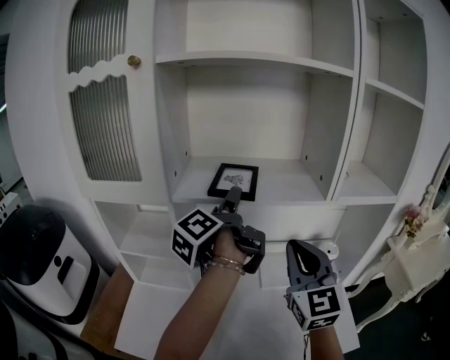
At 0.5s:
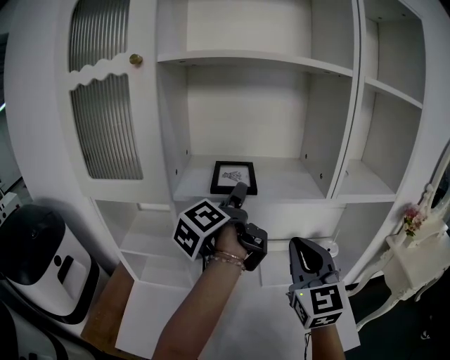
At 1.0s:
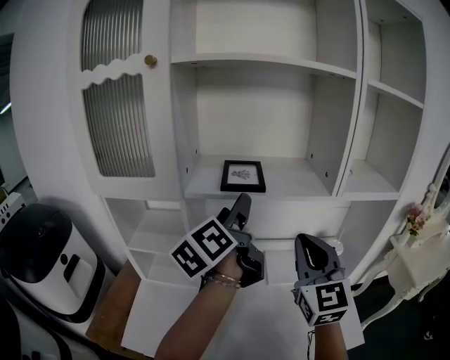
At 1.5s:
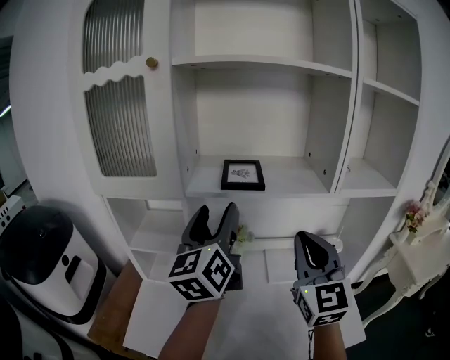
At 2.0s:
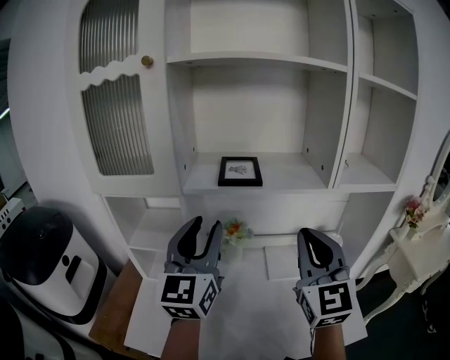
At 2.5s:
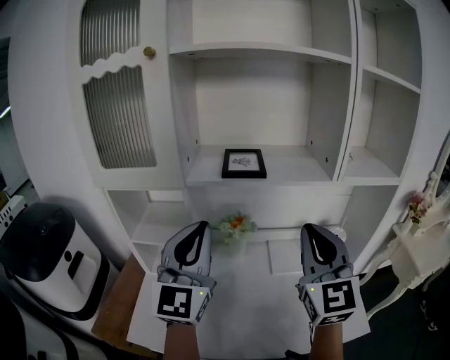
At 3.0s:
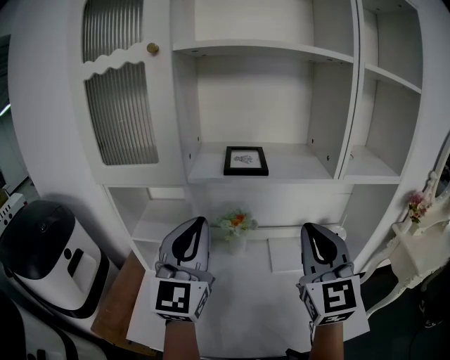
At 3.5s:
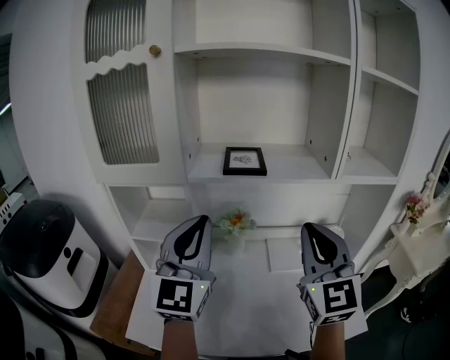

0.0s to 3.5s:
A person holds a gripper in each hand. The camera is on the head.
0.0s to 2.0s: The right gripper ends up roughly 5 cm from where it was; the left gripper shifts about 15 cm backward and to the left, and rolls clockwise, seen from behind, by approximately 80 degrees.
2.0s to 3.5s: The left gripper closes its fingers.

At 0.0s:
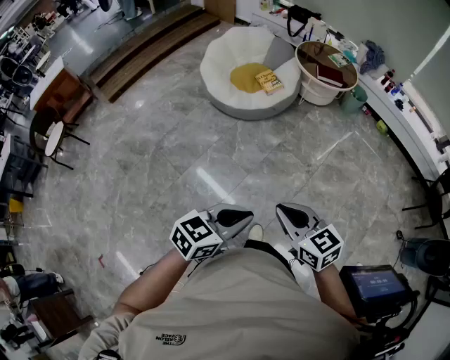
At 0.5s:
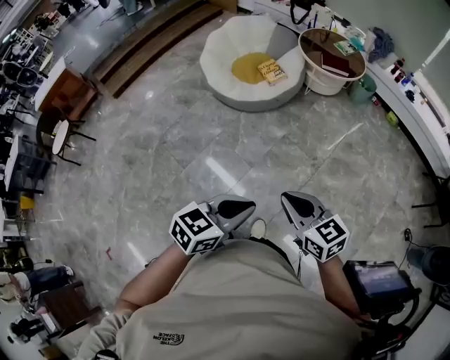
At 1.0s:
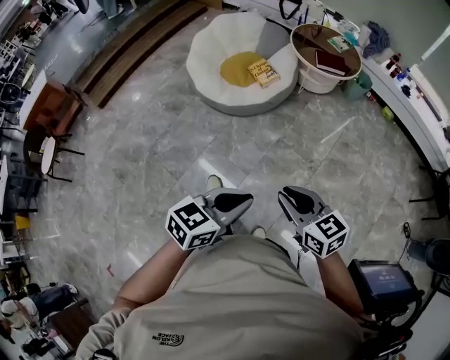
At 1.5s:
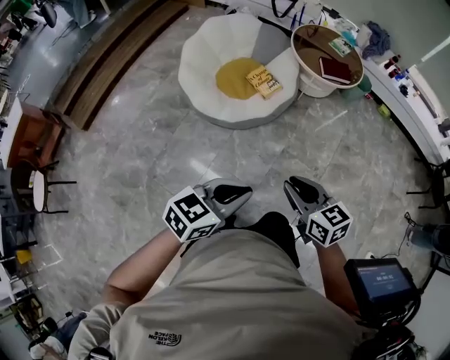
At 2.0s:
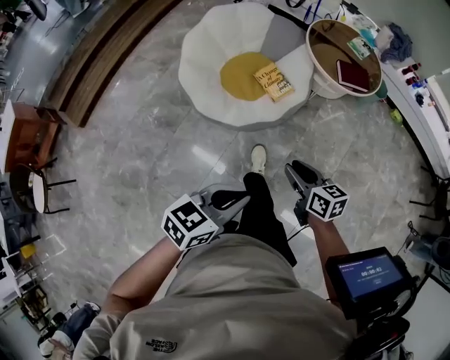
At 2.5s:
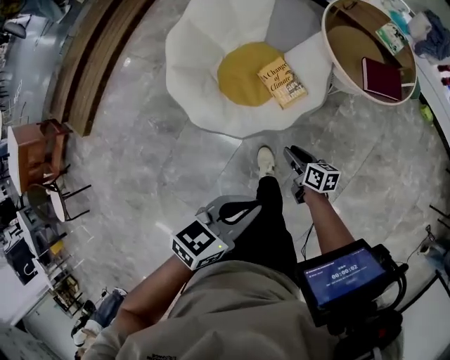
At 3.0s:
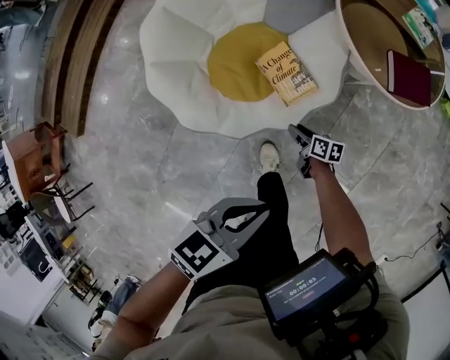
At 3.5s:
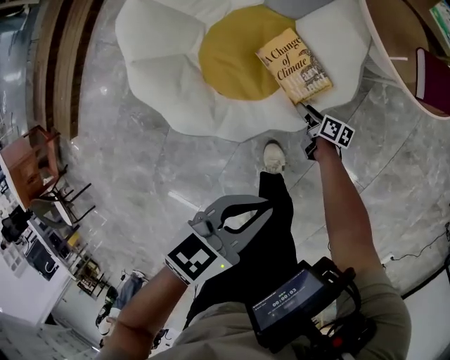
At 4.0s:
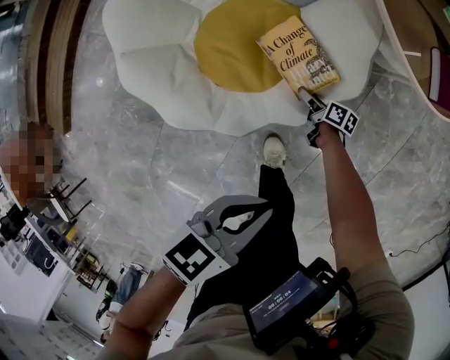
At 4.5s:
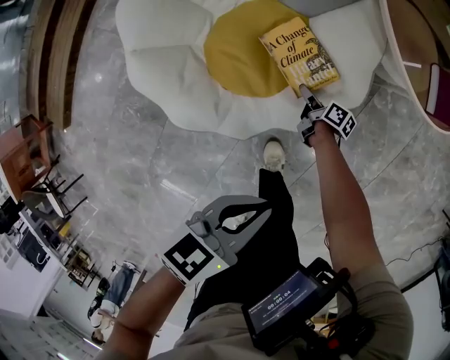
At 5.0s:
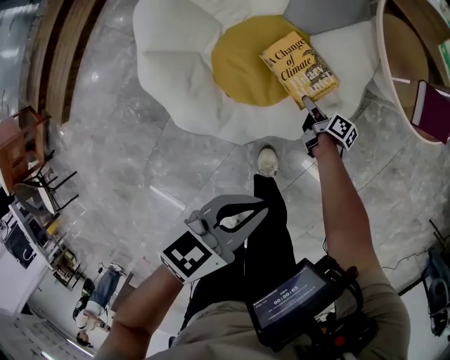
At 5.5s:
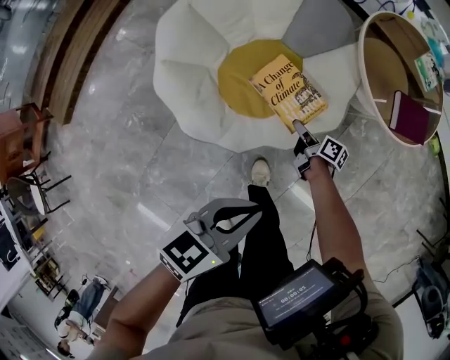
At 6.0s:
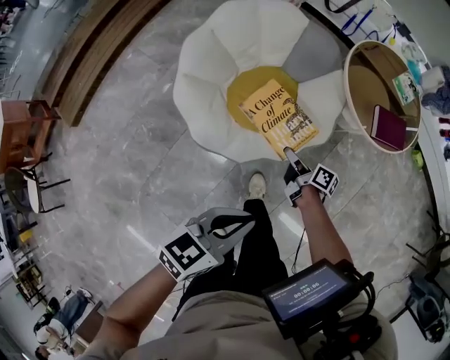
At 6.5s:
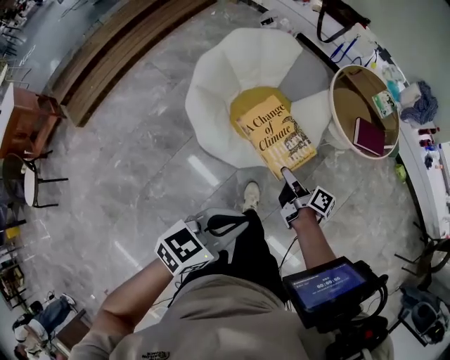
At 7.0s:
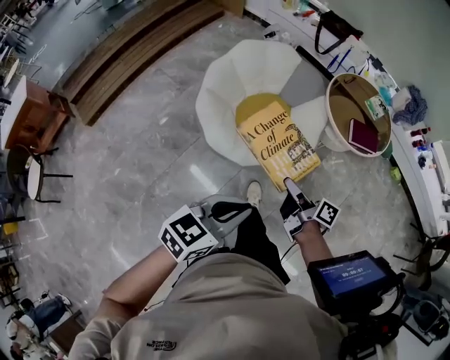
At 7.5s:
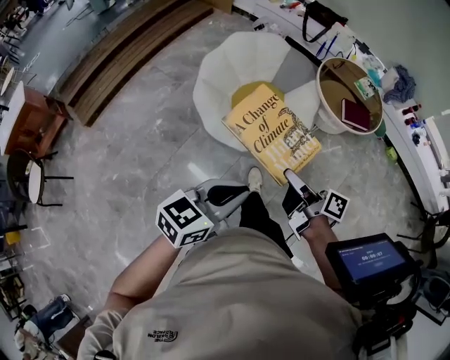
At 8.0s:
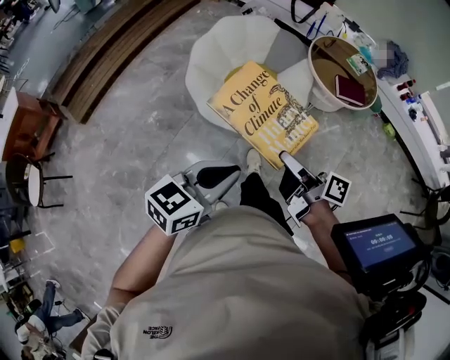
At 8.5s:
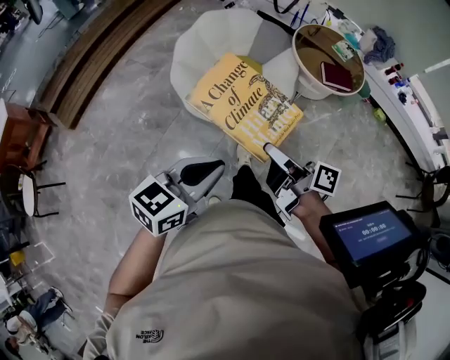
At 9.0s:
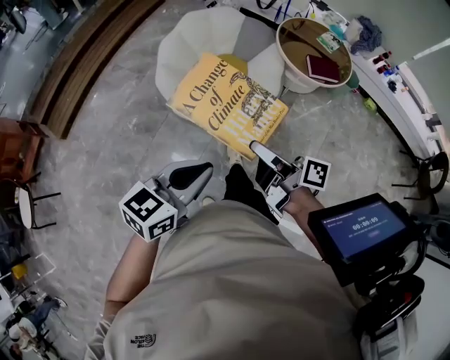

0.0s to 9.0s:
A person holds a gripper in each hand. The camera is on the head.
0.0s to 2.0s: The pair of grippers is taken forward, roughly 60 cm. The right gripper changes its angle by roughly 30 degrees, and opens.
2.0s to 4.5s: The left gripper goes some 50 cm forward and downward. The right gripper shifts some 70 cm downward and forward, rotates around the line of its fingers by some 50 degrees, clockwise from behind, and opens and closes again.
4.5s to 7.0s: The right gripper goes some 70 cm upward and backward, and changes its angle by some 20 degrees, while the left gripper moves upward and backward, some 40 cm, and swivels roughly 30 degrees.
7.0s to 9.0s: The right gripper travels backward and upward by approximately 20 cm, while the left gripper moves backward, about 10 cm.

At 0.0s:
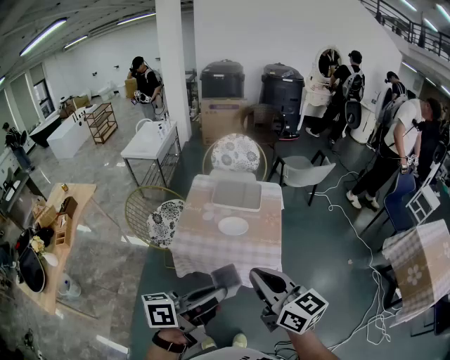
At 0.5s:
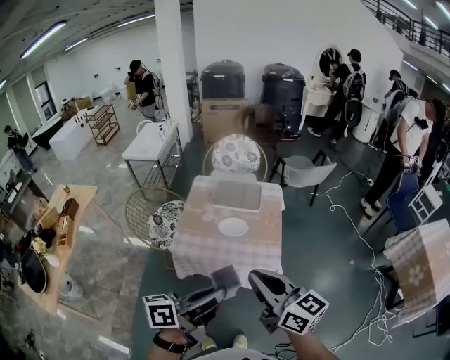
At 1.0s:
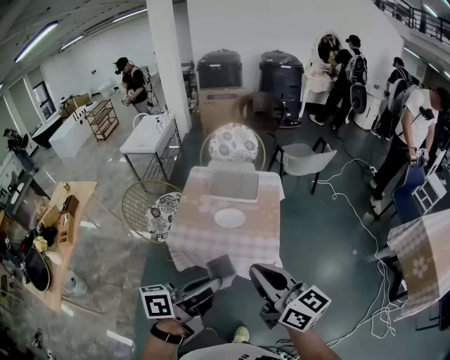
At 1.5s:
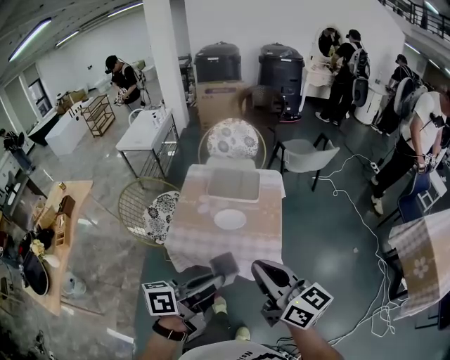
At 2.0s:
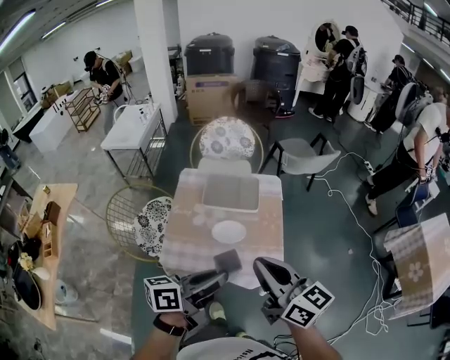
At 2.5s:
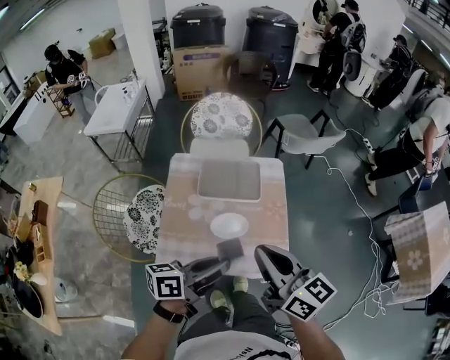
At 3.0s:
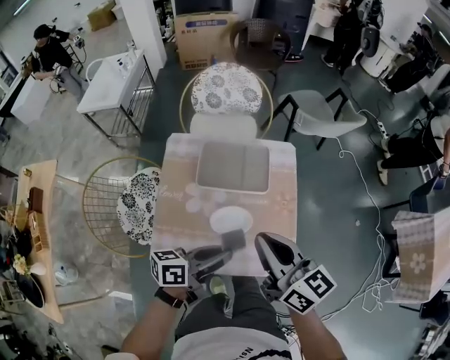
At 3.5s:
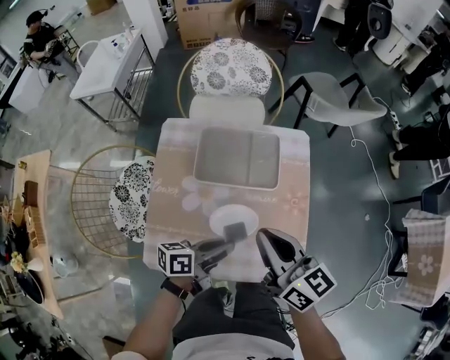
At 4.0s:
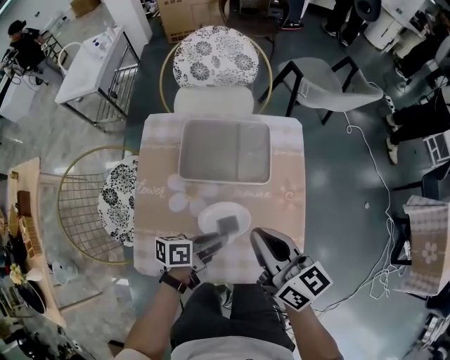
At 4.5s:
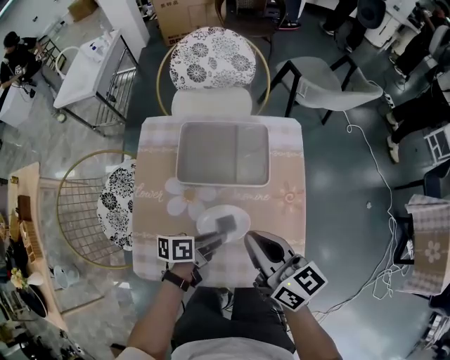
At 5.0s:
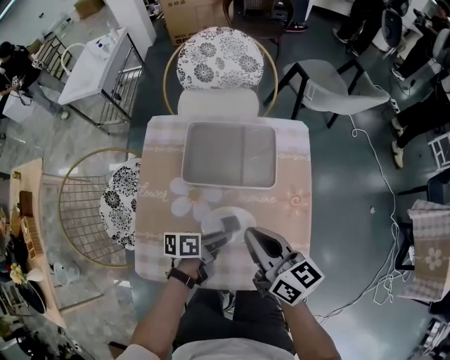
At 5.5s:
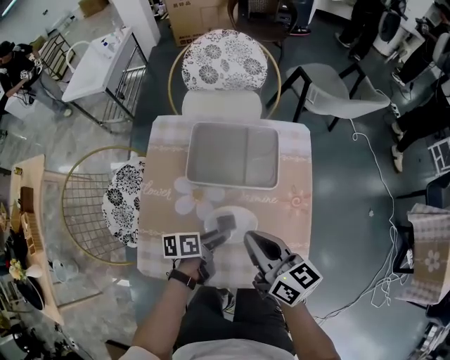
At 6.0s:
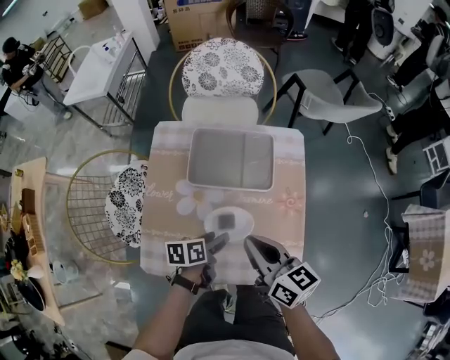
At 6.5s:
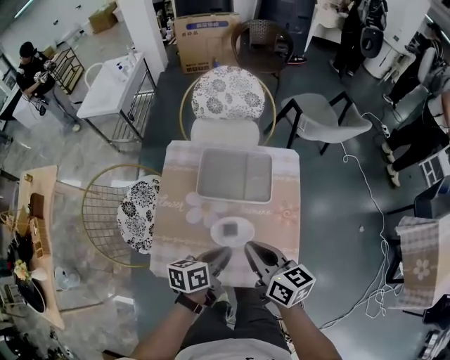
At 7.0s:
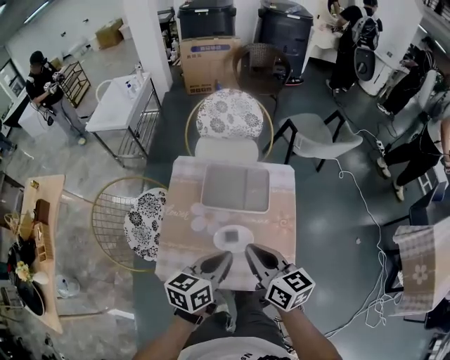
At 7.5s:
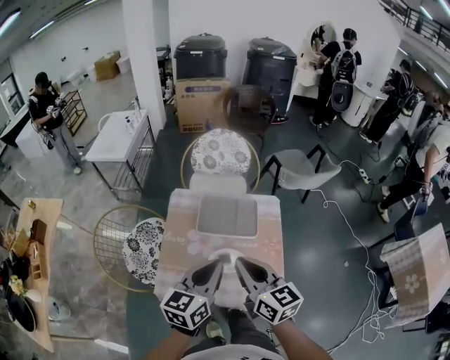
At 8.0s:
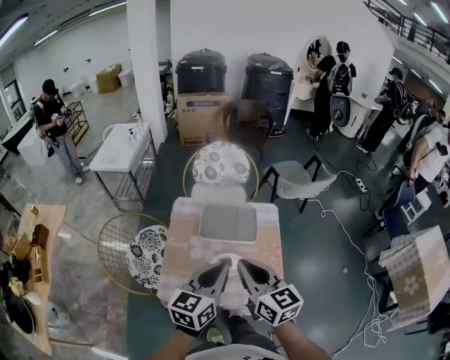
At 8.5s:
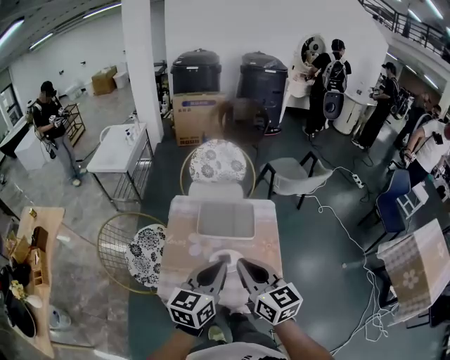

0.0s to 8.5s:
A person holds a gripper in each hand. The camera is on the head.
0.0s to 2.0s: Both grippers move forward, approximately 15 cm.
2.0s to 4.0s: The two grippers go about 35 cm downward and forward. The left gripper swivels some 30 degrees.
4.0s to 6.5s: The left gripper heads upward, covering about 10 cm, and opens, then closes again.
6.5s to 8.5s: The right gripper heads upward and backward, covering about 20 cm, and turns by some 30 degrees; the left gripper is displaced upward by approximately 25 cm, and changes its angle by approximately 40 degrees.

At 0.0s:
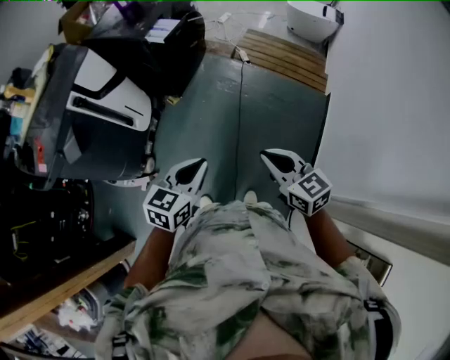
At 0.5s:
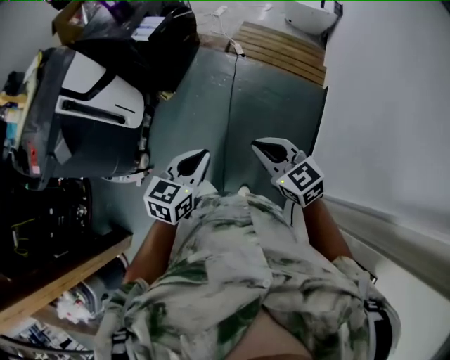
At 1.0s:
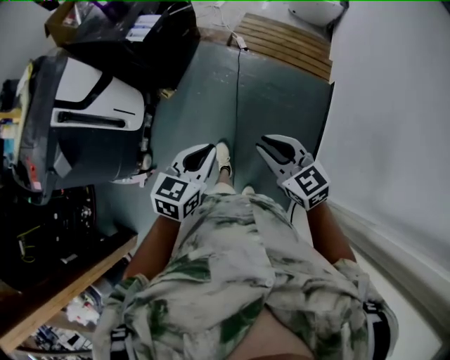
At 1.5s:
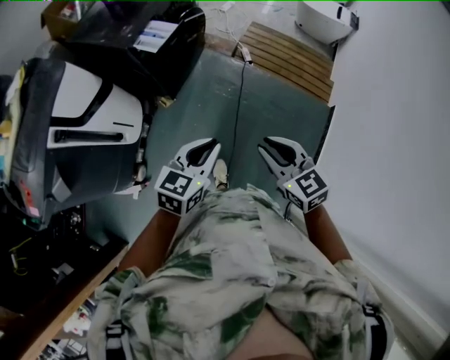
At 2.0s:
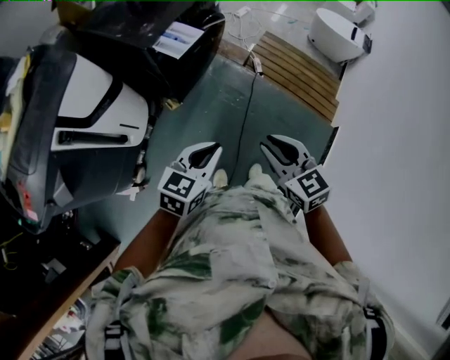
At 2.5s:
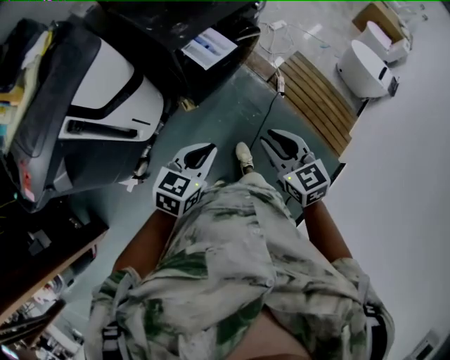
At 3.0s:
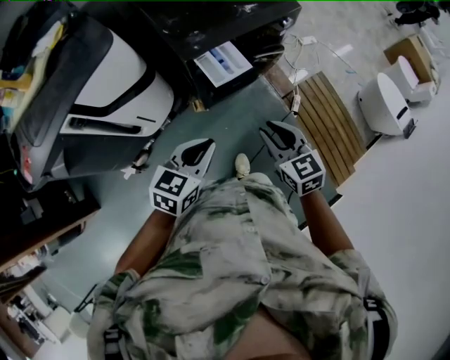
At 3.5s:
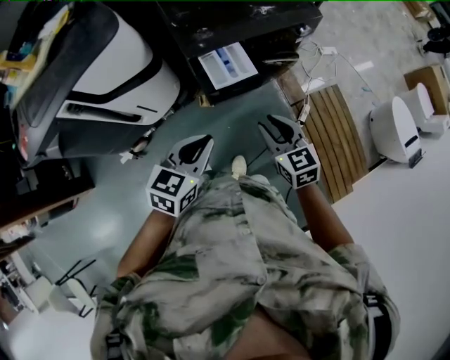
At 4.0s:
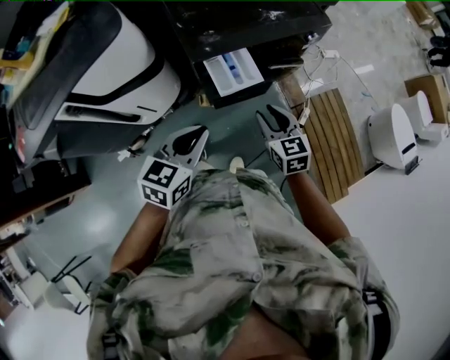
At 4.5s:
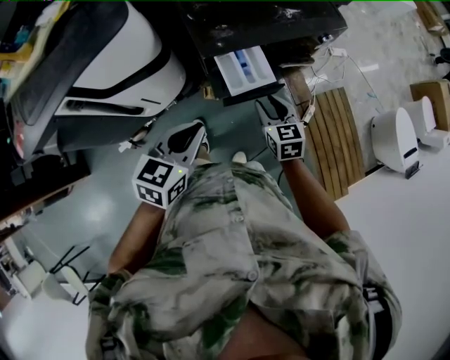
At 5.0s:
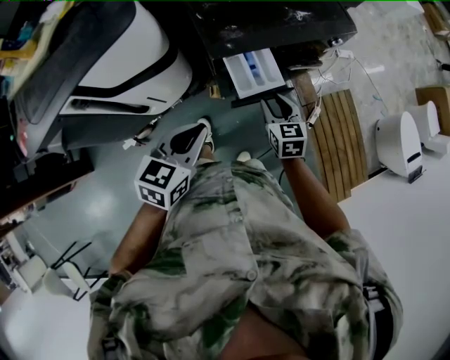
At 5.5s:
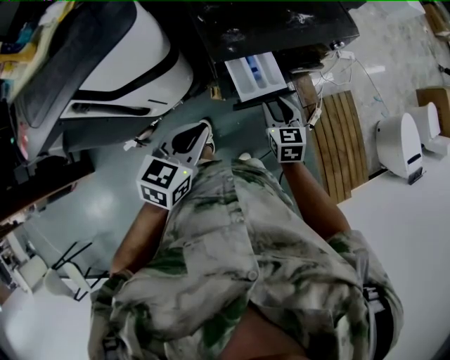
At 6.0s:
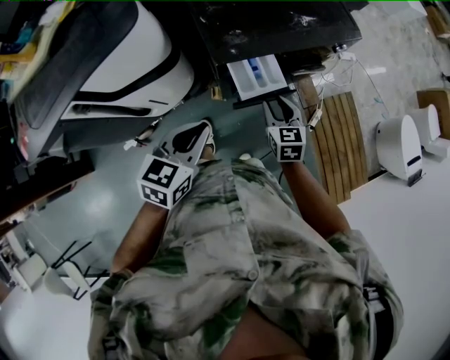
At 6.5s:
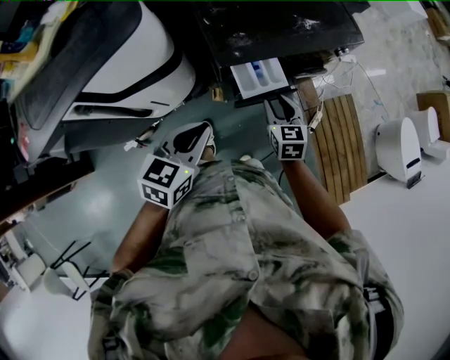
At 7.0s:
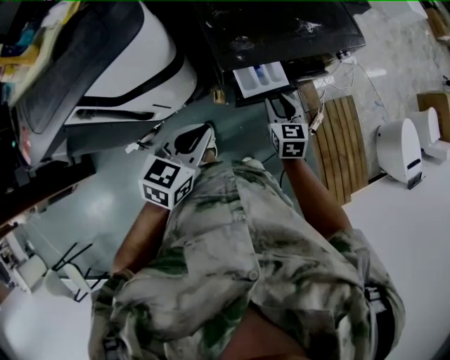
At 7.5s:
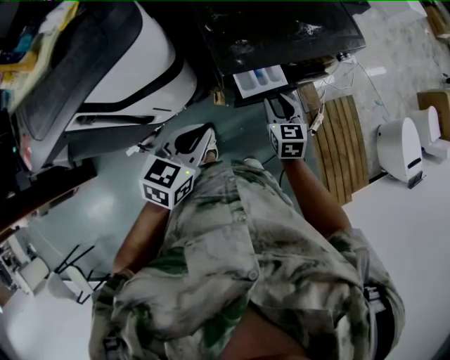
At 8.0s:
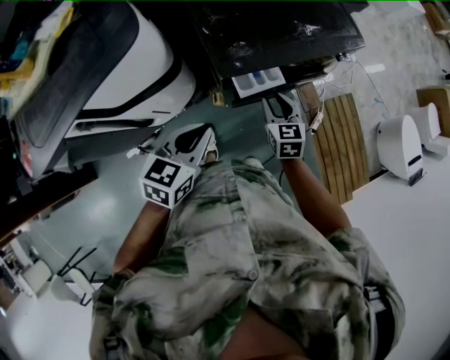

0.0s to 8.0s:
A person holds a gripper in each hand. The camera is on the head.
0.0s to 2.0s: Both grippers move forward, some 35 cm.
2.0s to 4.0s: The right gripper ends up roughly 40 cm from where it was, and turns by approximately 20 degrees, while the left gripper ends up about 30 cm from where it was, and rotates some 40 degrees.
4.0s to 6.0s: The left gripper goes about 10 cm to the left and forward; the right gripper is displaced forward, downward and to the left by some 10 cm.
6.0s to 8.0s: The right gripper heads forward, covering about 5 cm, while the left gripper changes place by approximately 5 cm.
